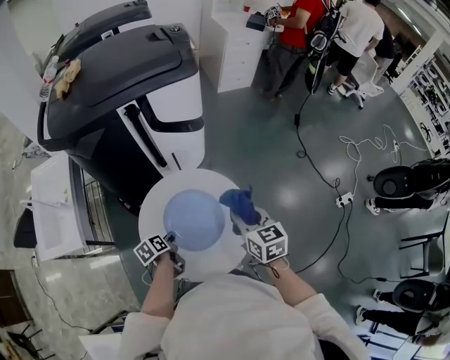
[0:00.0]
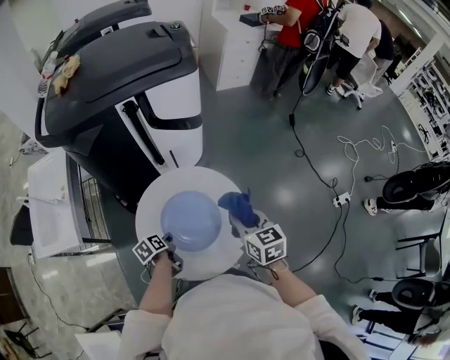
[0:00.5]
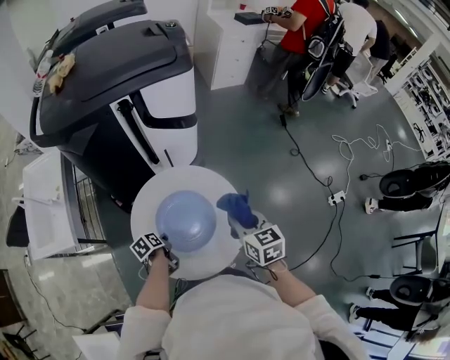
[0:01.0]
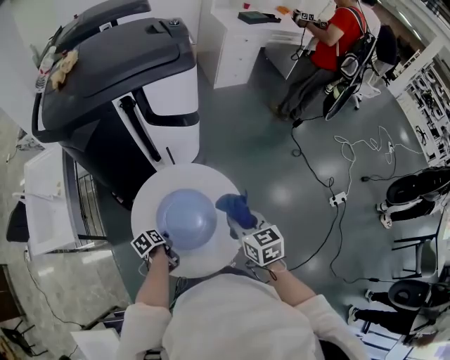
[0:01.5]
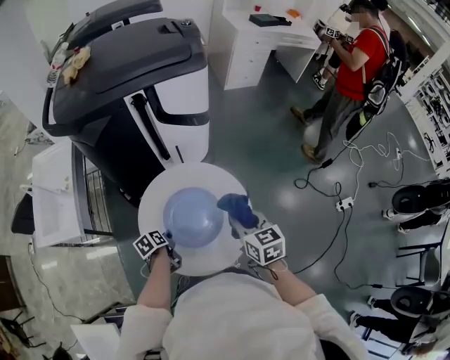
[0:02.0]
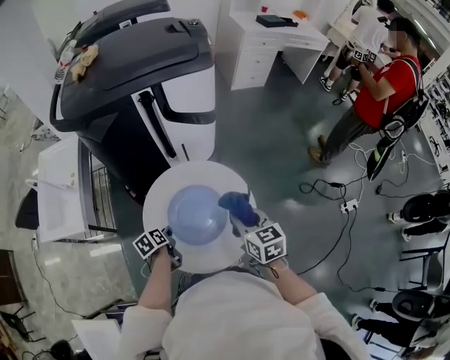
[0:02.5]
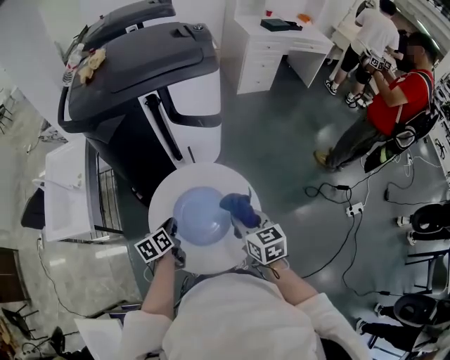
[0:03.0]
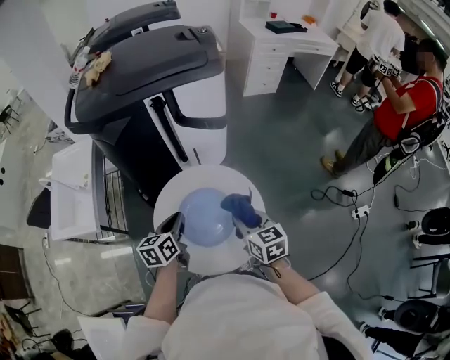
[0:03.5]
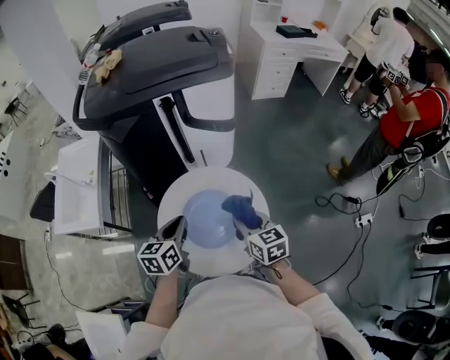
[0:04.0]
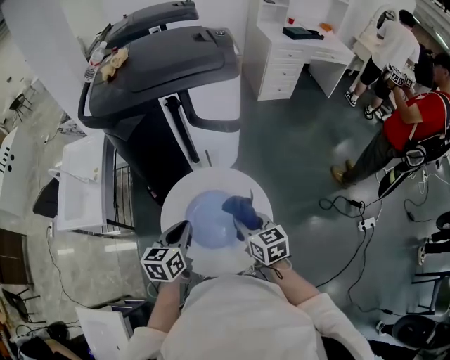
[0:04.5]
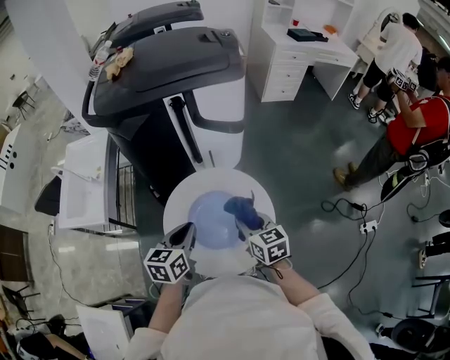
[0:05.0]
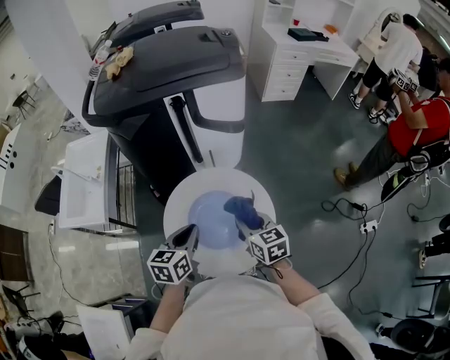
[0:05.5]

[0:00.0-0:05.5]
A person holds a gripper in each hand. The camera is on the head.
0:00.0 to 0:02.0: The left gripper changes place by some 5 cm.
0:02.0 to 0:03.5: The left gripper moves upward, roughly 20 cm, and rotates some 40 degrees.
0:03.5 to 0:05.5: The left gripper shifts by some 5 cm.

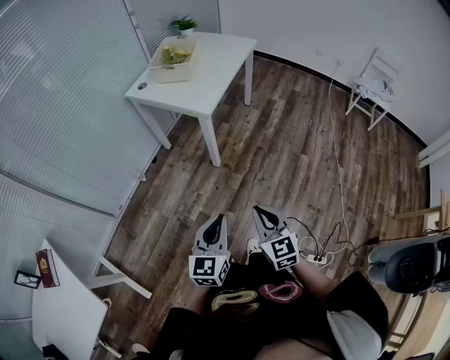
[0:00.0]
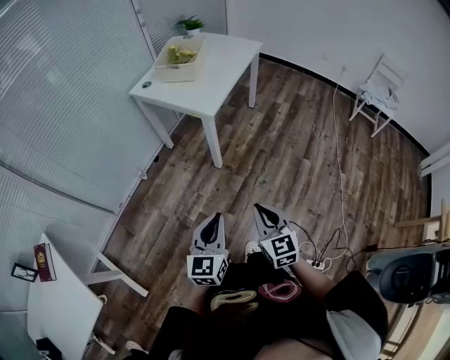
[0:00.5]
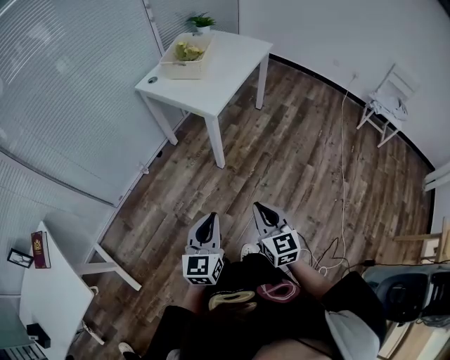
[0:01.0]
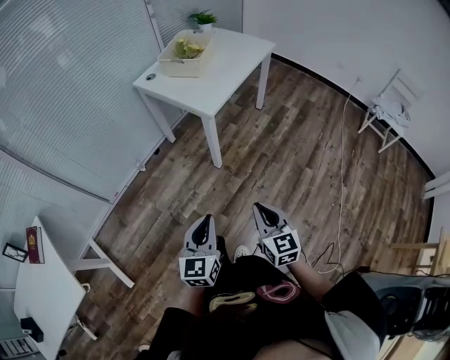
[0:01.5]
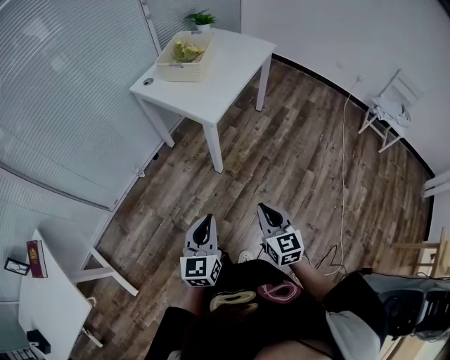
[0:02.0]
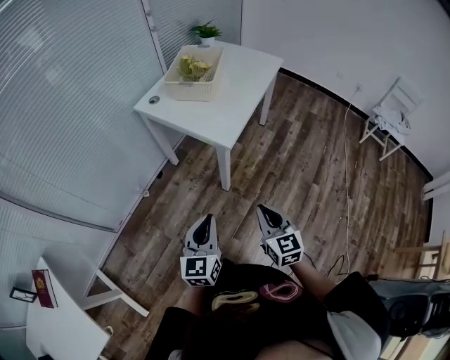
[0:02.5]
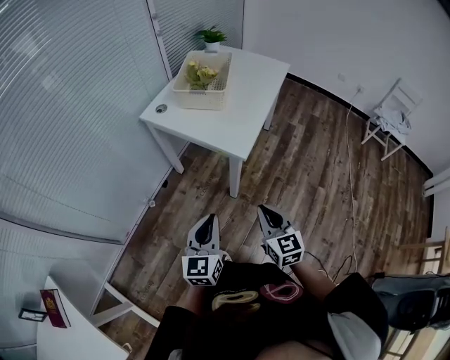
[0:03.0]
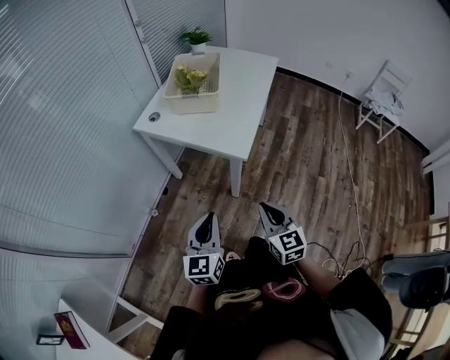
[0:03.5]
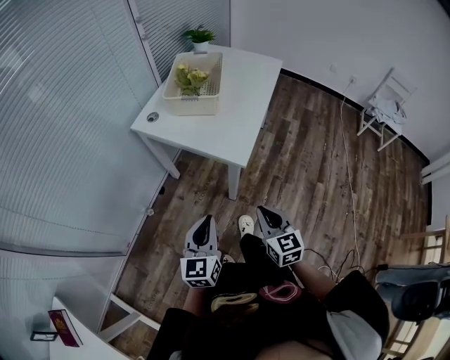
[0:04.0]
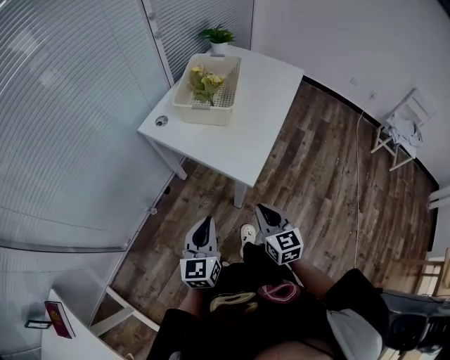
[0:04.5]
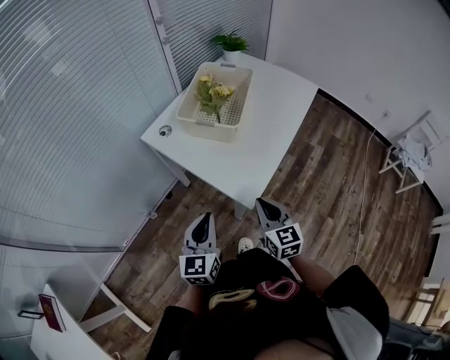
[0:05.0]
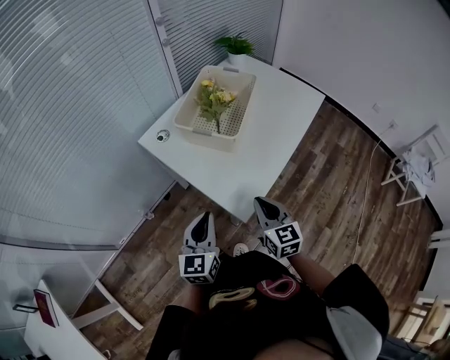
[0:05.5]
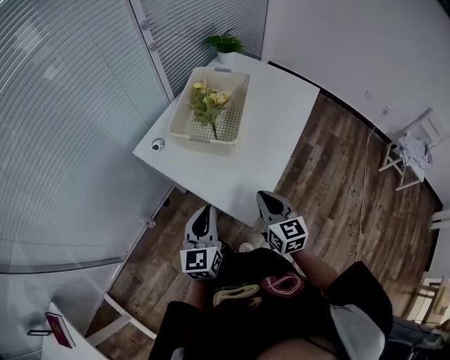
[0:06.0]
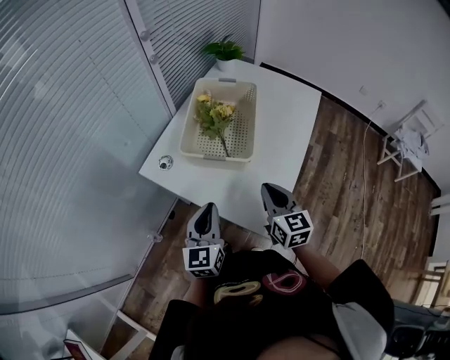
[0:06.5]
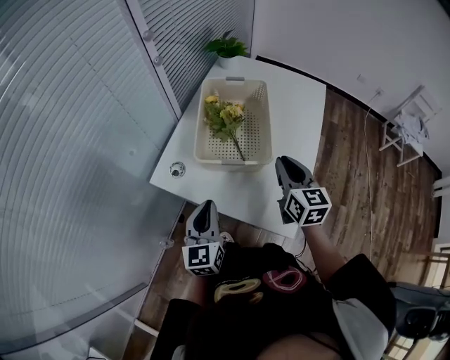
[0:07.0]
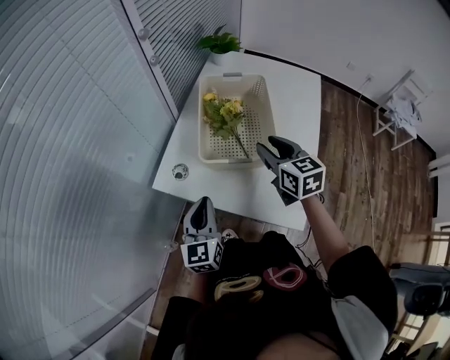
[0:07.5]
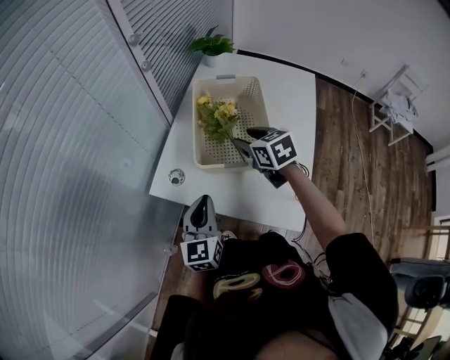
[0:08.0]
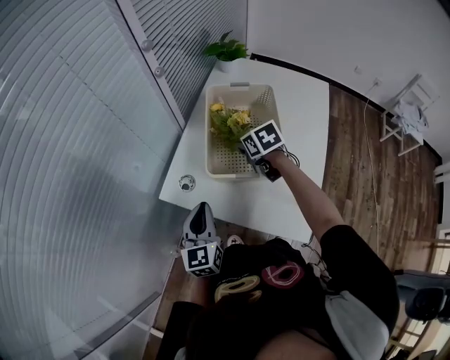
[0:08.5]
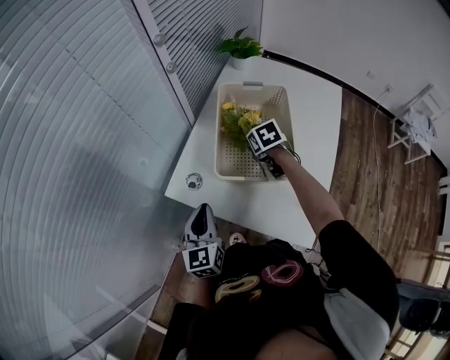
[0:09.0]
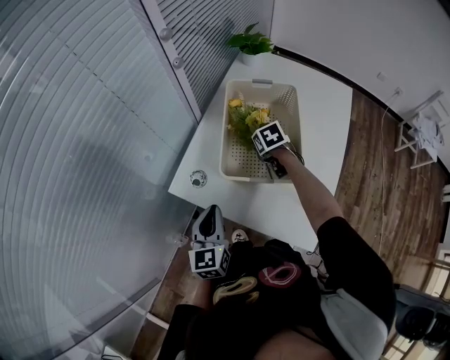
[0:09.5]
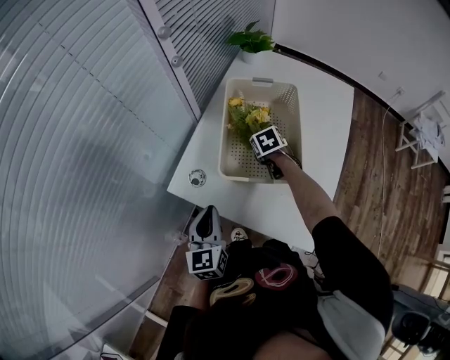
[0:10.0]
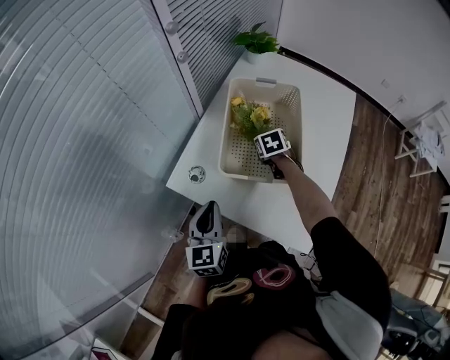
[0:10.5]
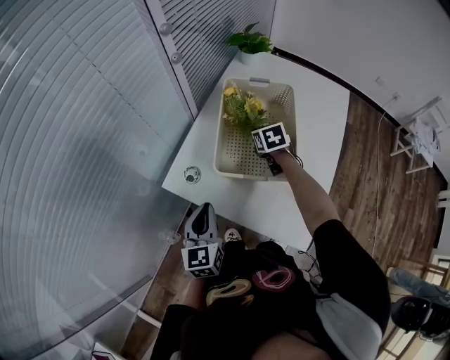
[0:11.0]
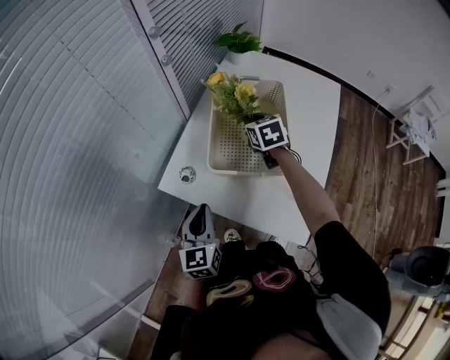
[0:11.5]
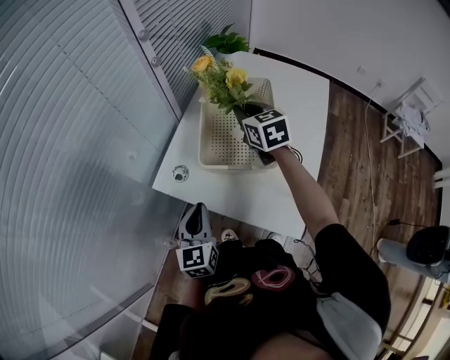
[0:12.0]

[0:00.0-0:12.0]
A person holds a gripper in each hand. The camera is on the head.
0:00.0 to 0:02.0: The left gripper goes about 10 cm forward, while the right gripper goes about 15 cm forward and to the right.
0:02.0 to 0:04.0: The two grippers go some 25 cm forward and to the left.
0:04.0 to 0:06.0: Both grippers move forward, approximately 30 cm.
0:06.0 to 0:08.0: Both grippers move forward and to the left, some 25 cm. The right gripper turns by about 20 degrees, and opens up.
0:08.0 to 0:10.0: The right gripper heads downward and forward, covering roughly 20 cm, and rotates some 20 degrees.
0:10.0 to 0:12.0: The right gripper heads upward, covering approximately 20 cm, angles its fingers upward, by some 40 degrees, and closes its fingers.

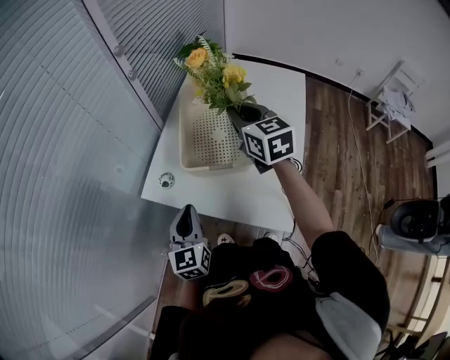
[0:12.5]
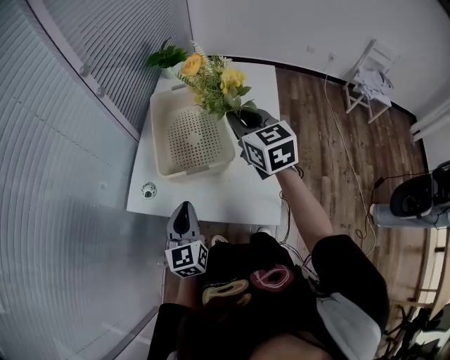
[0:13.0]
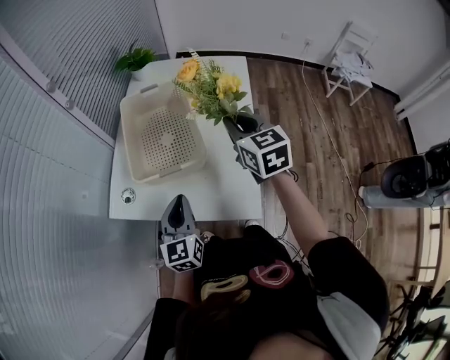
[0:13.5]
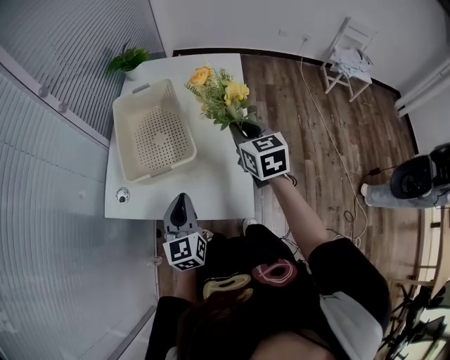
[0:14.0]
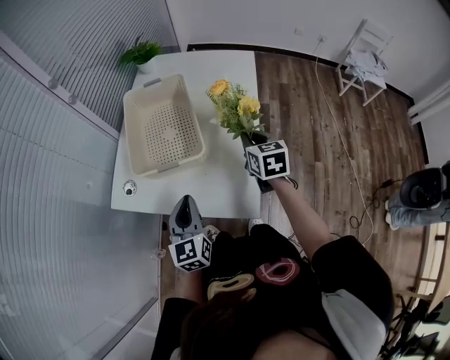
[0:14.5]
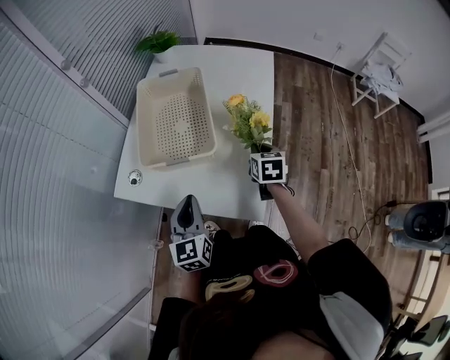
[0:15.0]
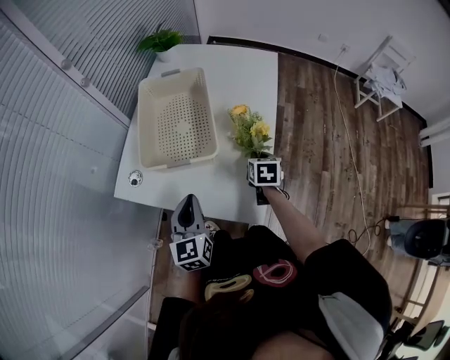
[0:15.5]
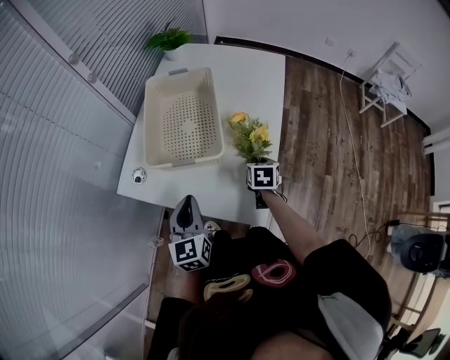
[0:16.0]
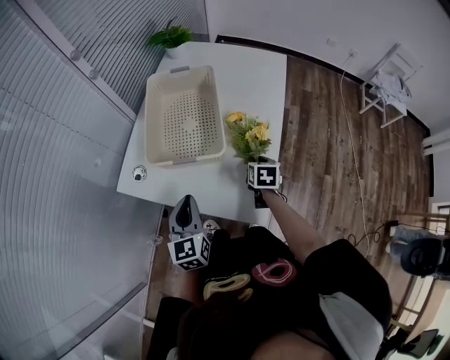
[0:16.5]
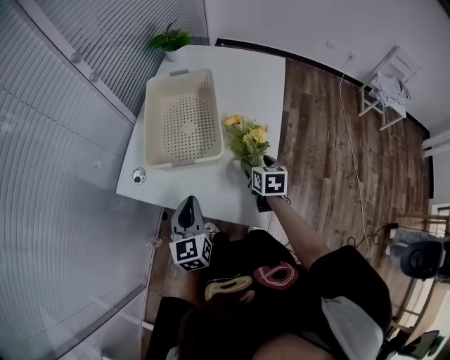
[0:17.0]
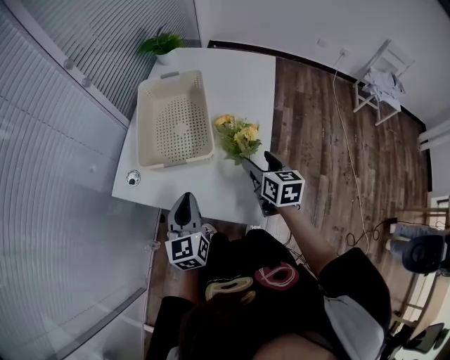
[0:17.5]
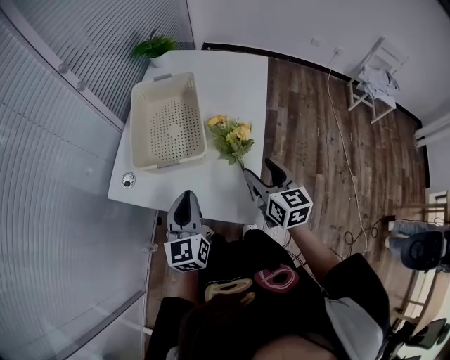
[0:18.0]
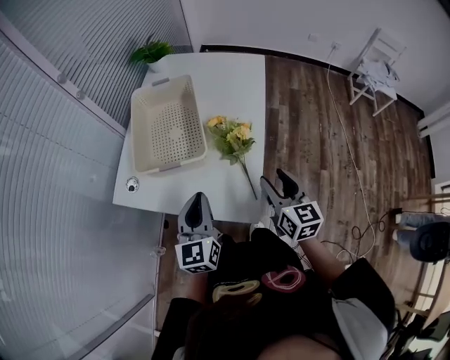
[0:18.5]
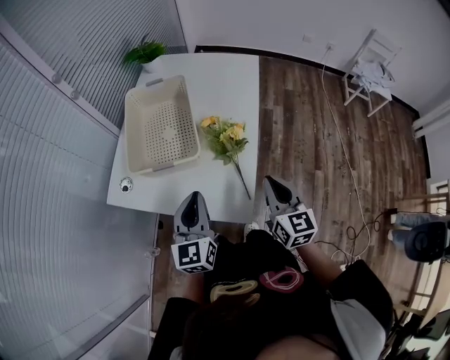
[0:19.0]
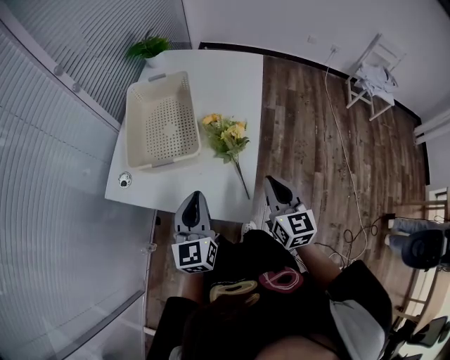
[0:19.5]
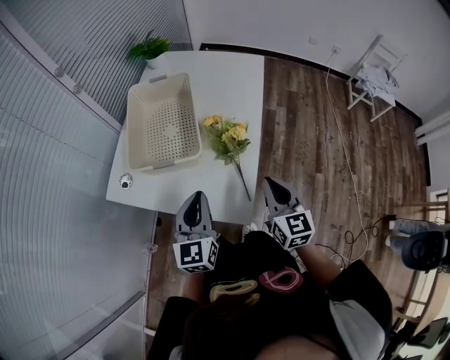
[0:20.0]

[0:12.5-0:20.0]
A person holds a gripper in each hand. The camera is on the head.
0:12.5 to 0:14.5: The right gripper shifts some 25 cm to the right, downward and backward, and rotates roughly 30 degrees, while the left gripper shifts some 15 cm to the right.
0:14.5 to 0:16.5: The right gripper travels downward by about 15 cm.
0:16.5 to 0:18.0: The right gripper goes some 20 cm upward and backward, angles its fingers upward, by some 30 degrees, and opens. Meanwhile the left gripper heads to the right and upward, covering roughly 10 cm.
0:18.0 to 0:20.0: The right gripper changes place by roughly 5 cm, and closes its fingers.

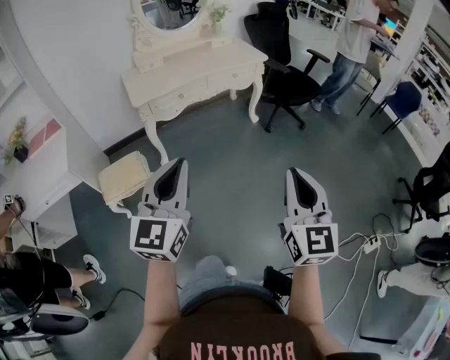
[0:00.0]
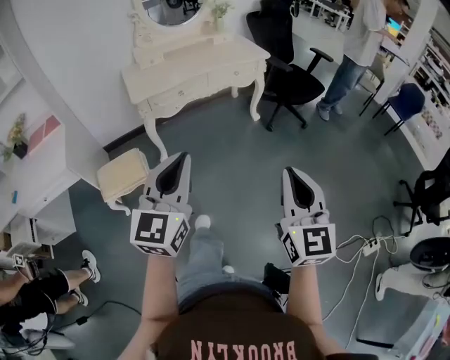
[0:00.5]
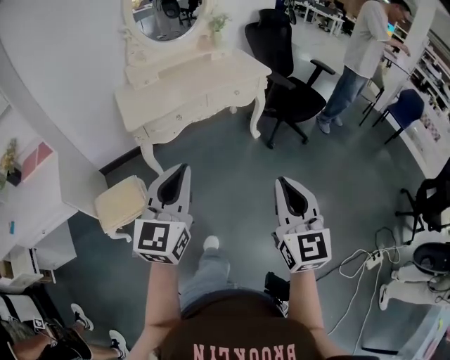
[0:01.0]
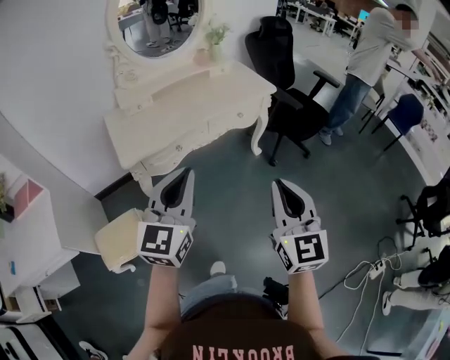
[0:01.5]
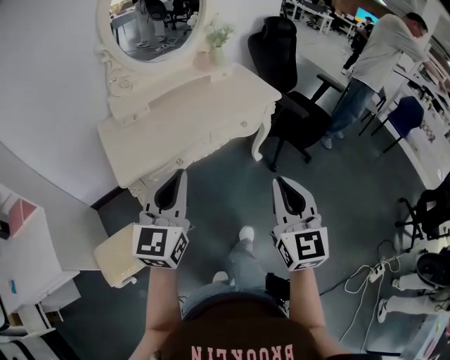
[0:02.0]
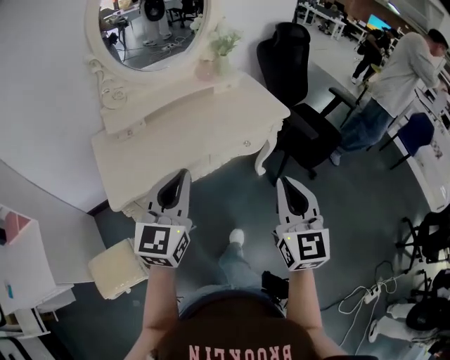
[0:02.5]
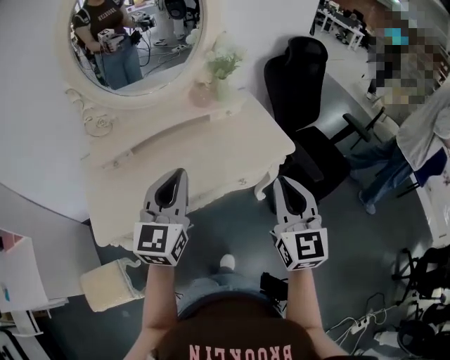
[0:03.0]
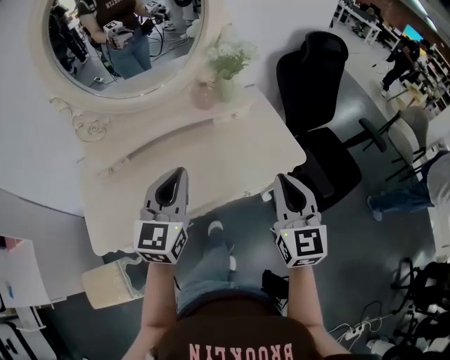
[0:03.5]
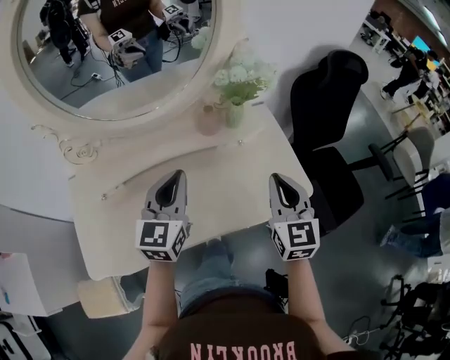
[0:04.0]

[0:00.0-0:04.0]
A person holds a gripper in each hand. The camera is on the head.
0:00.0 to 0:02.0: Both grippers are carried forward, roughly 40 cm.
0:02.0 to 0:04.0: The two grippers travel together, forward, approximately 60 cm.
